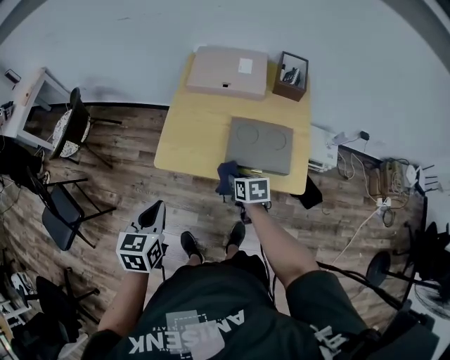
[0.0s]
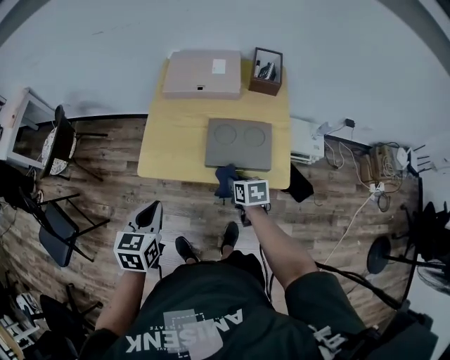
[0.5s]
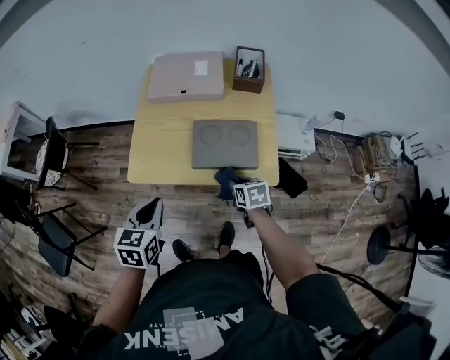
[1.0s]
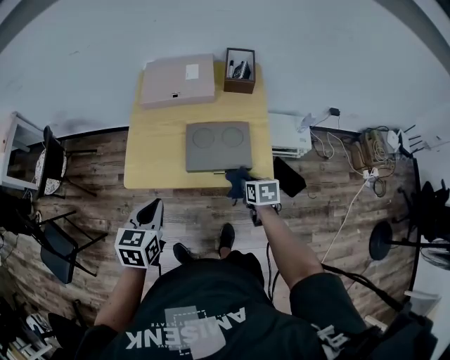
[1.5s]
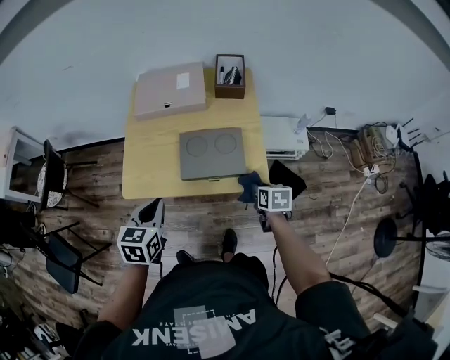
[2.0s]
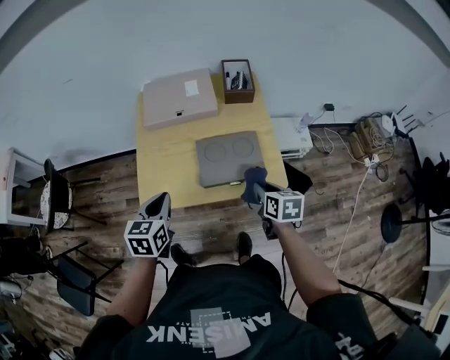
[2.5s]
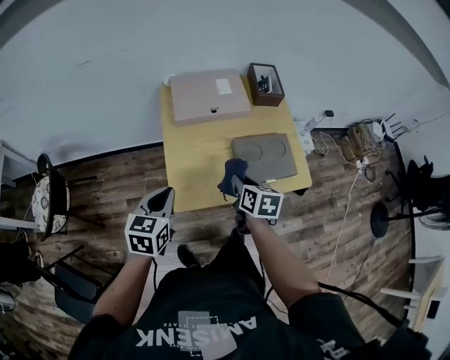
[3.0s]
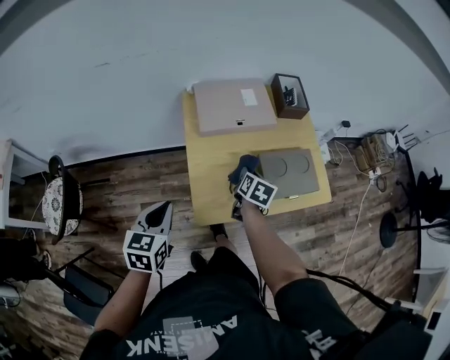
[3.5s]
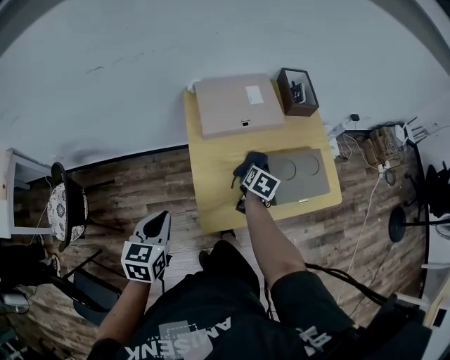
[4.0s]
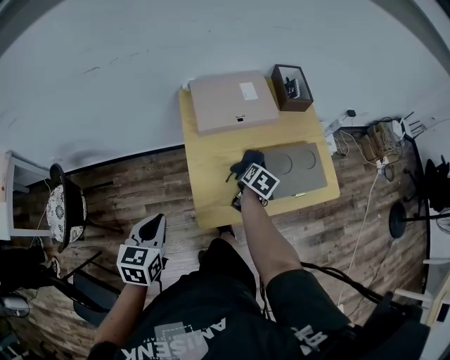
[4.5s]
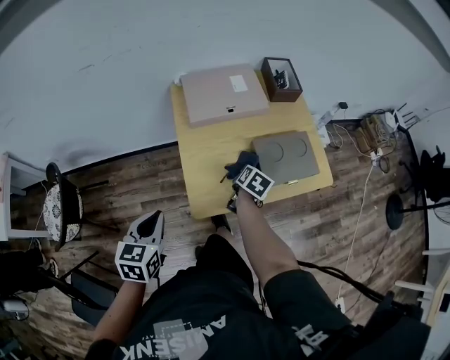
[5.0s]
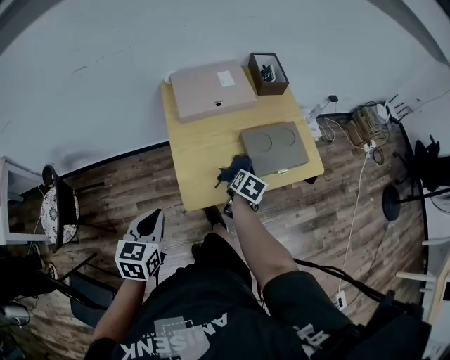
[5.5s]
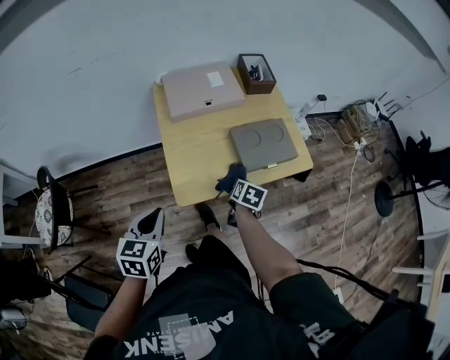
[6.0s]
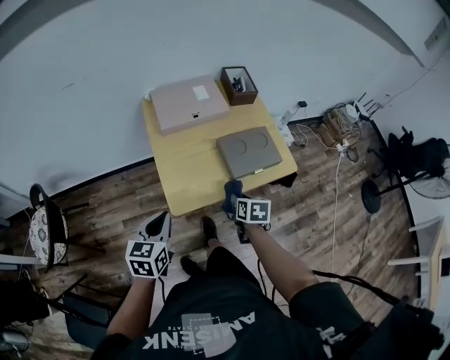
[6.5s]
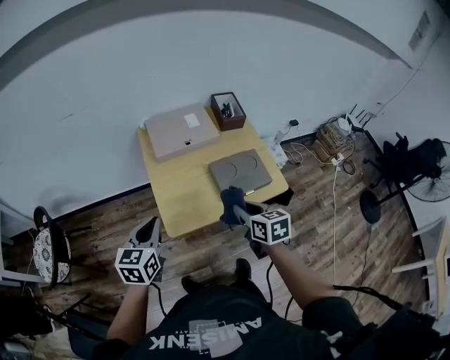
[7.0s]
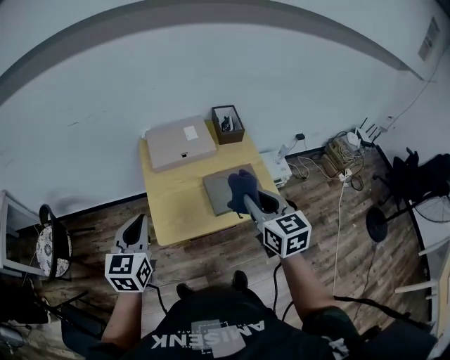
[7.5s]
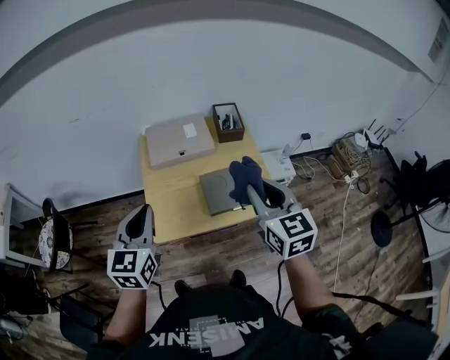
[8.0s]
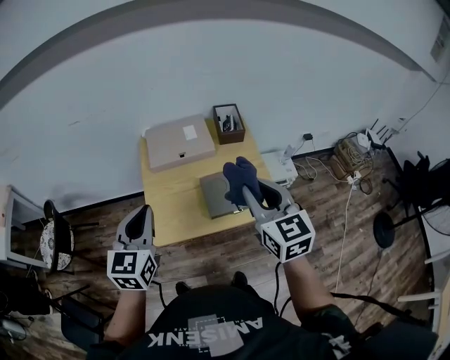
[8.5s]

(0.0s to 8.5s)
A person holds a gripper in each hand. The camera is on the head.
0.0s - 2.0s: The left gripper heads to the right and forward, covering roughly 15 cm, while the right gripper travels to the right by some 25 cm, and swivels roughly 20 degrees.
2.0s - 4.0s: The right gripper moves roughly 10 cm upward and comes back, and changes its angle by roughly 40 degrees, while the left gripper ends up some 35 cm from where it was.
4.0s - 6.5s: The left gripper goes about 10 cm to the right and backward, while the right gripper moves backward and to the right, approximately 20 cm.
6.5s - 8.5s: The left gripper travels upward and to the right by some 25 cm, and changes its angle by about 30 degrees; the right gripper shifts some 35 cm upward, and angles its fingers upward, by approximately 40 degrees.

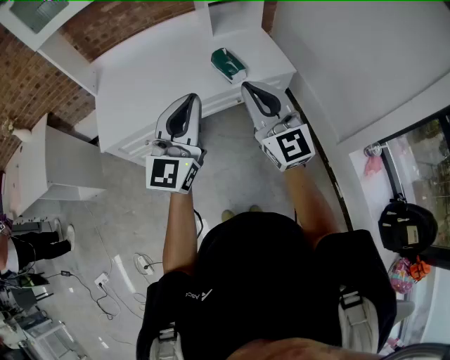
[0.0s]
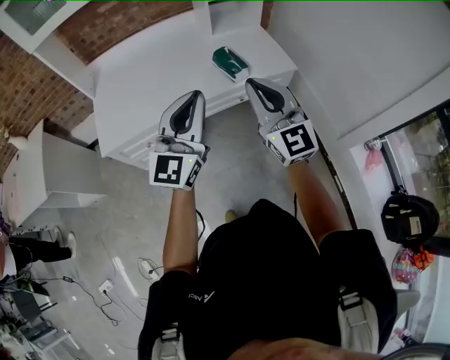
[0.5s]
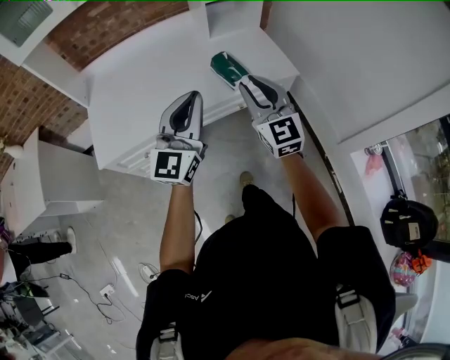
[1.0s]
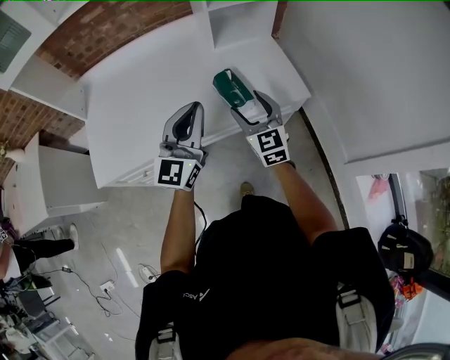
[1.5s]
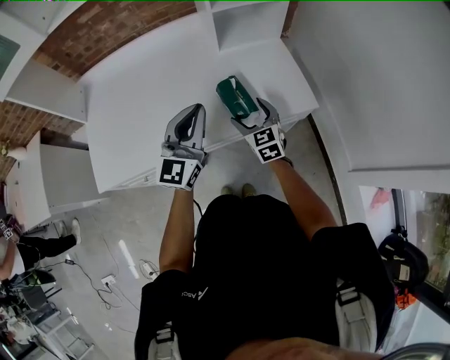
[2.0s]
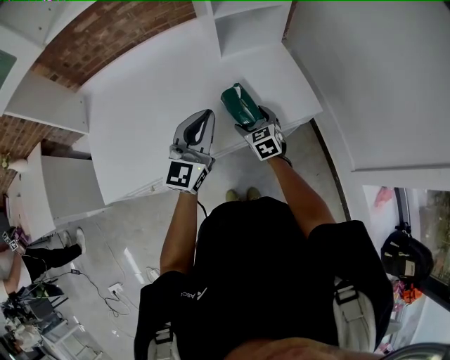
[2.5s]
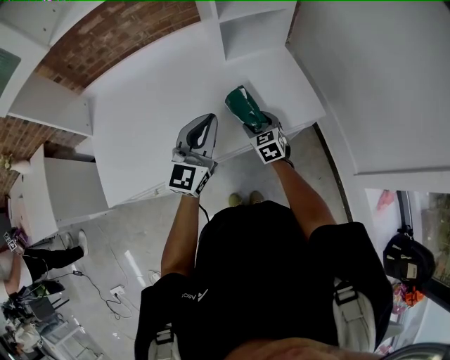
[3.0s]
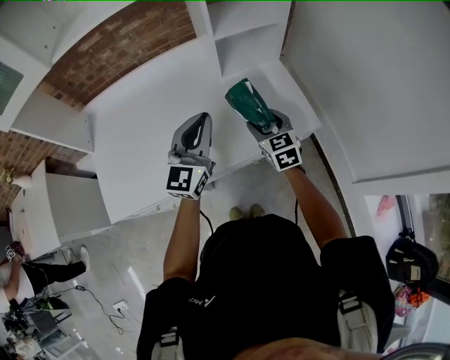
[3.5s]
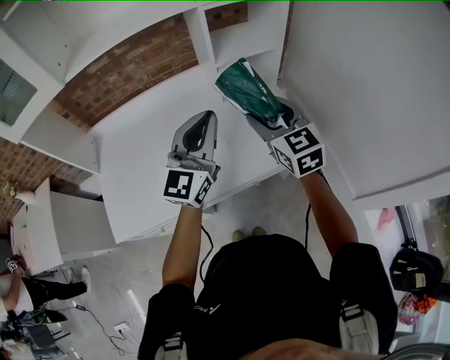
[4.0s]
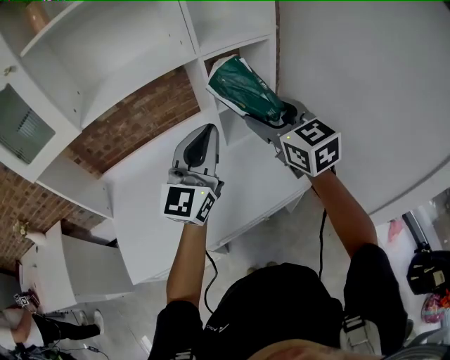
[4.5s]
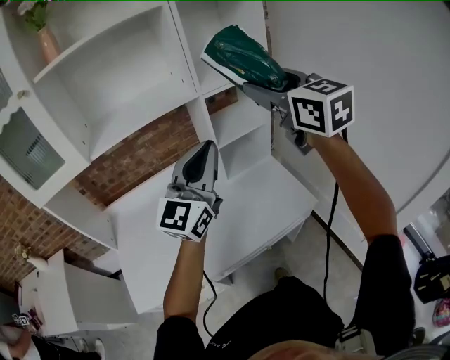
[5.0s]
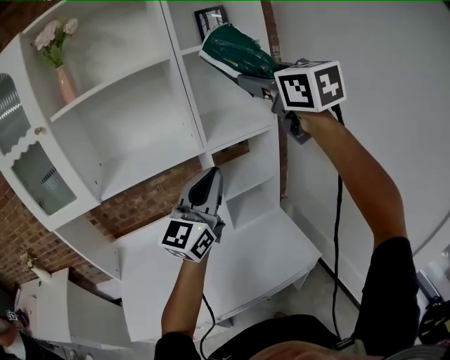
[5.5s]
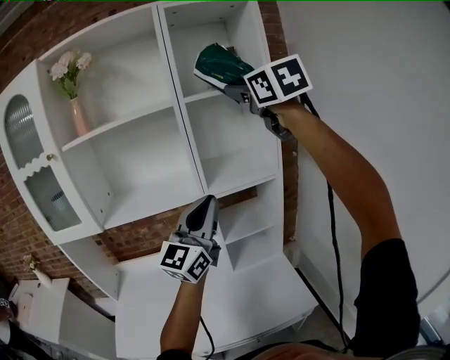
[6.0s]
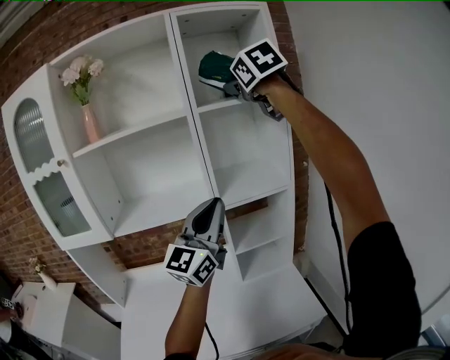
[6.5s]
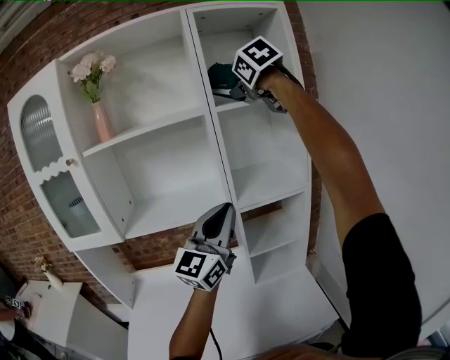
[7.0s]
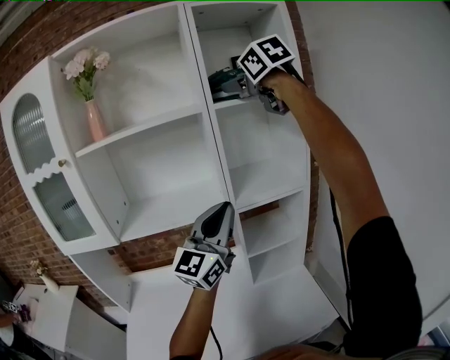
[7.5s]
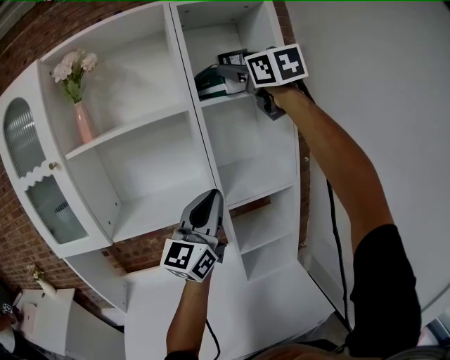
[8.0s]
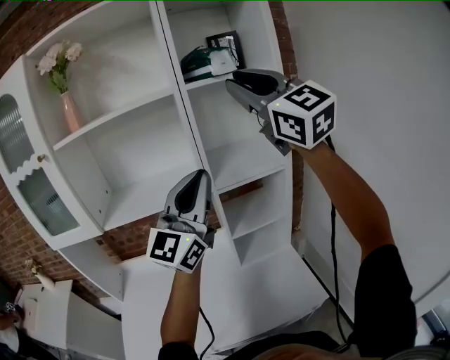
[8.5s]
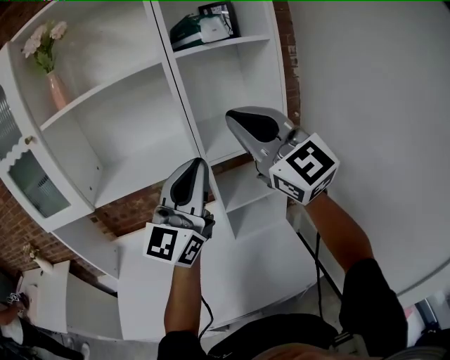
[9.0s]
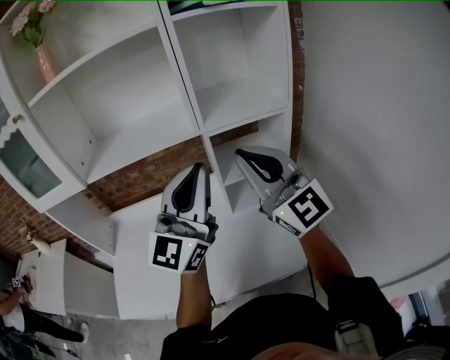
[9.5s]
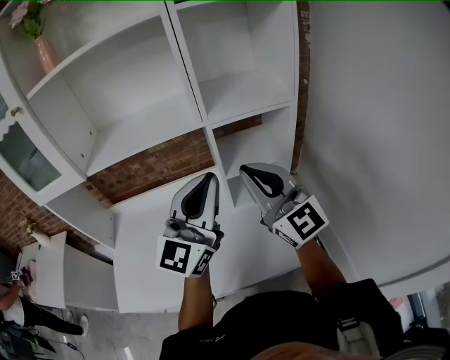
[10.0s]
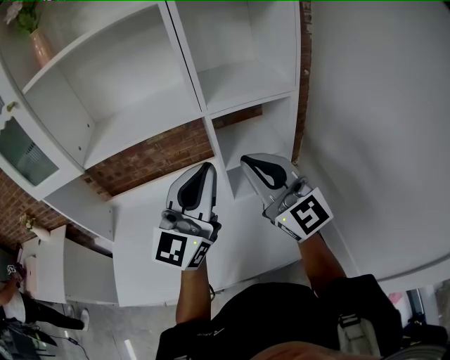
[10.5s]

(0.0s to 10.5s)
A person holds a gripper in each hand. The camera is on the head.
0.0s - 2.0s: The two grippers go some 40 cm forward and downward. The right gripper tips its fingers downward by about 40 degrees, and opens up.
2.0s - 4.0s: The left gripper travels upward and forward by approximately 15 cm. Meanwhile the right gripper is displaced upward by approximately 25 cm.
4.0s - 6.5s: The left gripper is displaced upward and forward by about 30 cm. Meanwhile the right gripper is displaced upward and forward by roughly 60 cm.
6.5s - 8.5s: The right gripper is displaced backward and downward by some 15 cm, rotates some 40 degrees, and closes its fingers.
8.5s - 10.5s: The left gripper moves downward, some 15 cm; the right gripper moves downward, about 30 cm.

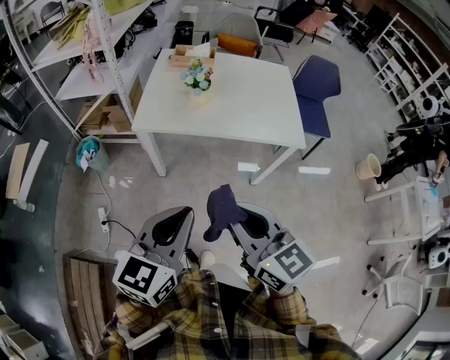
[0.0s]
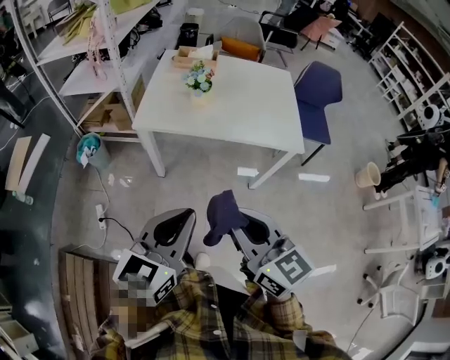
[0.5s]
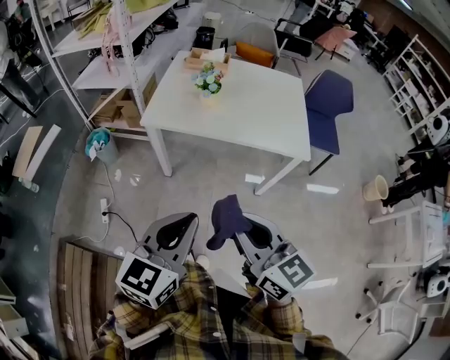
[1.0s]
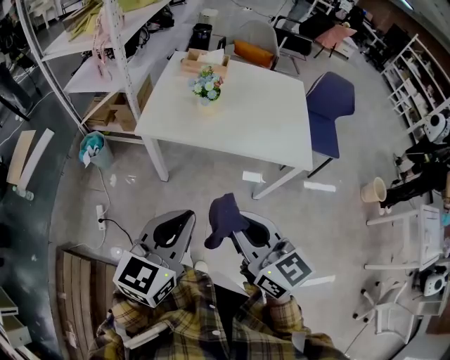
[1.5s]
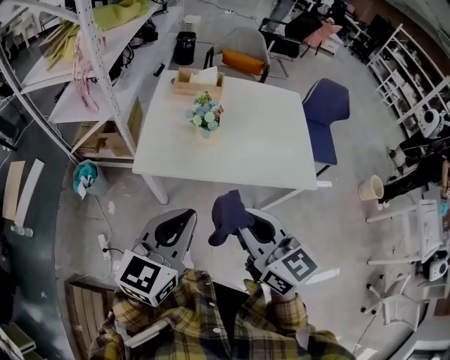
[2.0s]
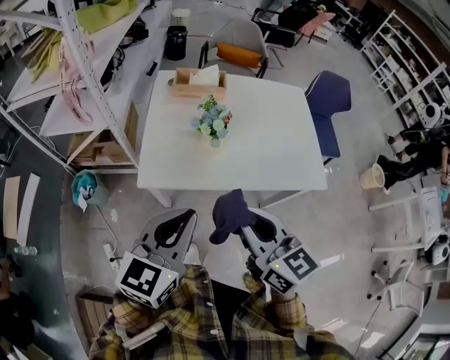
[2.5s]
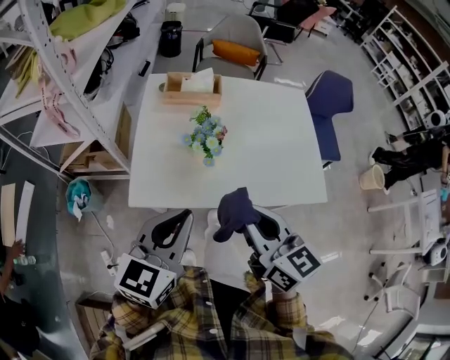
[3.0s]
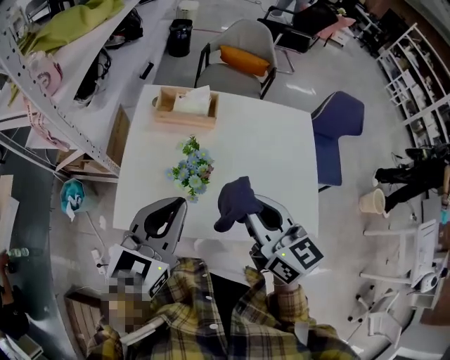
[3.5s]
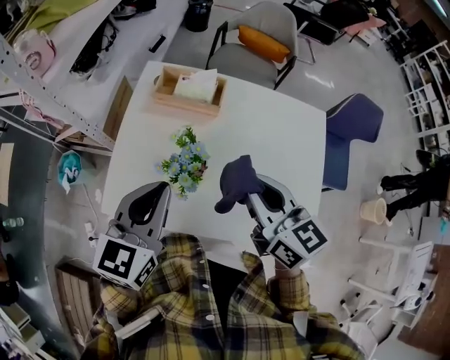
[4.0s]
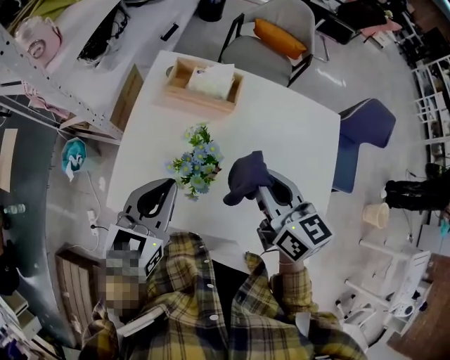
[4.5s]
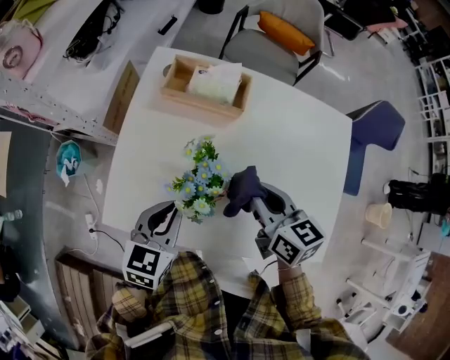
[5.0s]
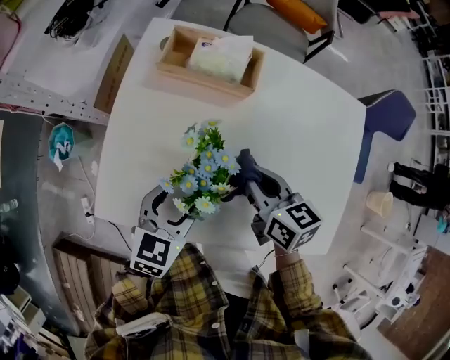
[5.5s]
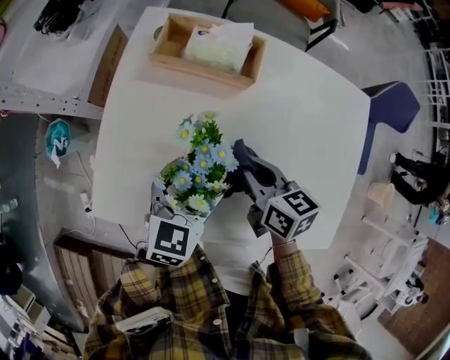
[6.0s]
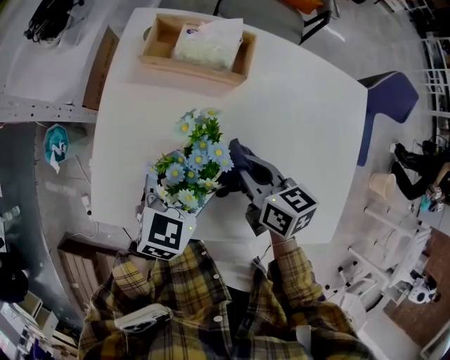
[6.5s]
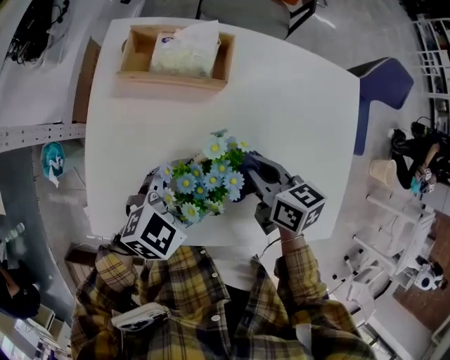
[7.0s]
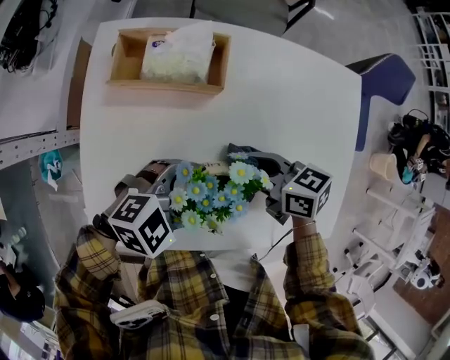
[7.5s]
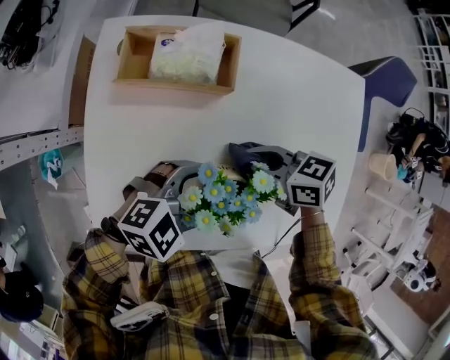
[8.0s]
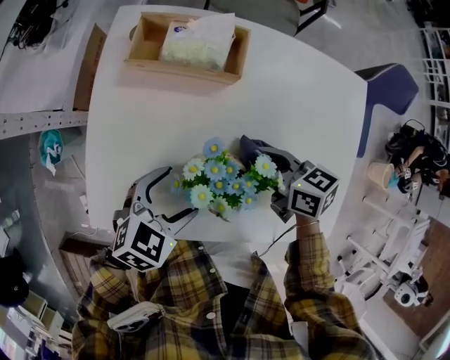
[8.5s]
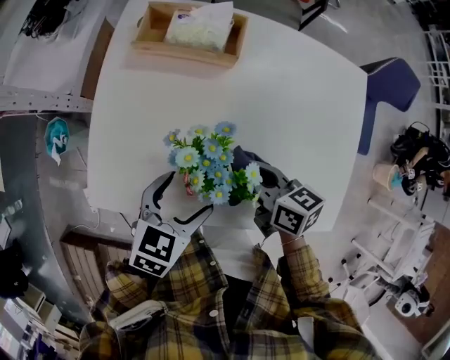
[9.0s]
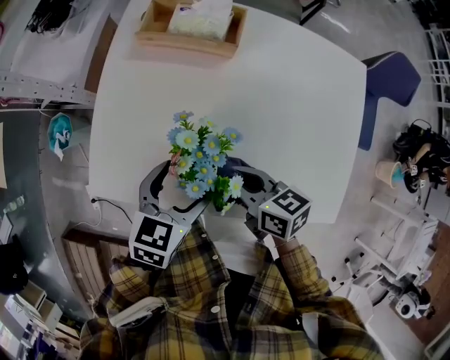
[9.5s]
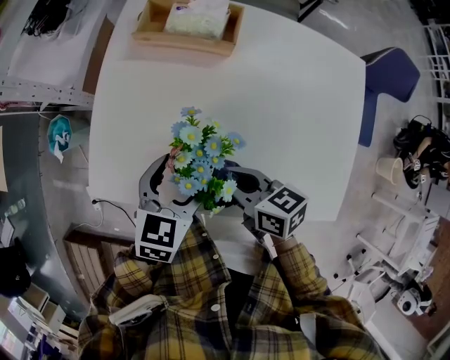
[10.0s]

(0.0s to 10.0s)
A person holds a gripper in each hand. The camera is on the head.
0.0s - 2.0s: The grippers both shift forward by approximately 20 cm.
2.0s - 4.0s: The grippers both shift forward by some 35 cm.
4.0s - 6.0s: The two grippers go some 20 cm downward. The right gripper turns by some 20 degrees. The left gripper opens its fingers.
6.0s - 8.0s: The left gripper moves roughly 5 cm, and changes its angle by about 60 degrees. The right gripper turns by roughly 20 degrees.
8.0s - 10.0s: The right gripper moves about 15 cm; the left gripper ends up approximately 5 cm from where it was, and changes its angle by roughly 60 degrees.
